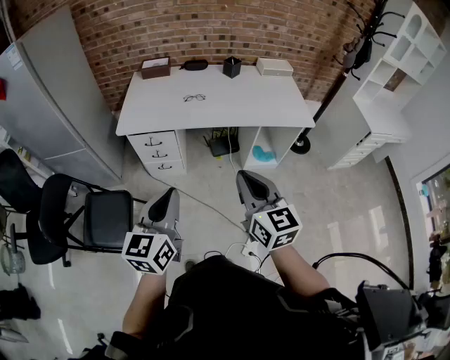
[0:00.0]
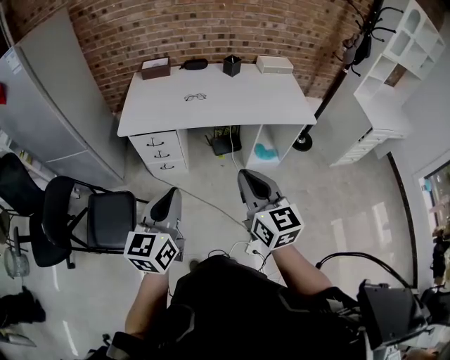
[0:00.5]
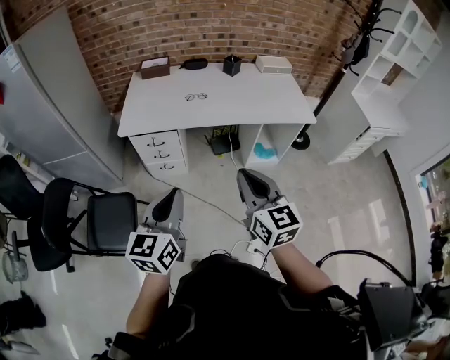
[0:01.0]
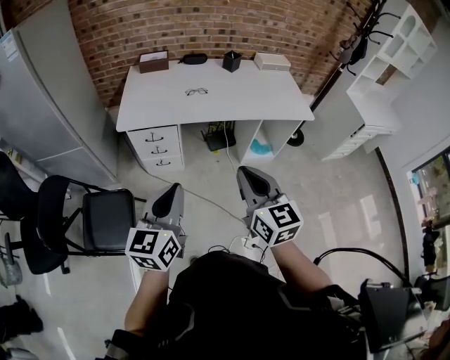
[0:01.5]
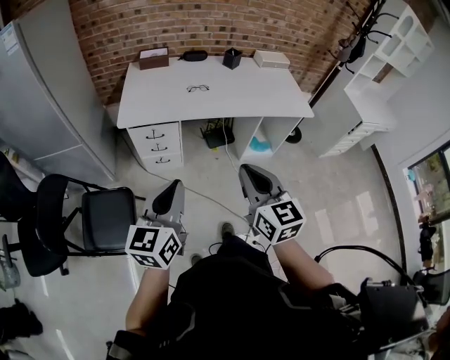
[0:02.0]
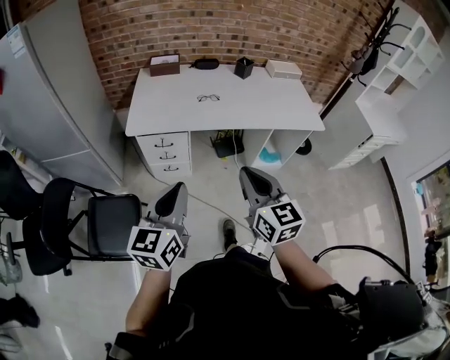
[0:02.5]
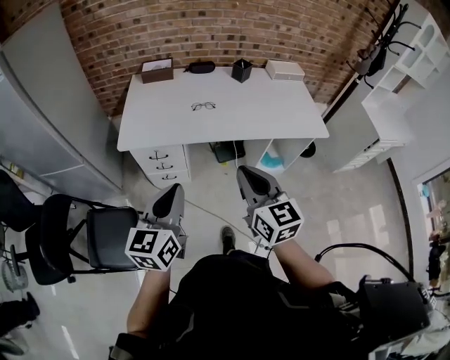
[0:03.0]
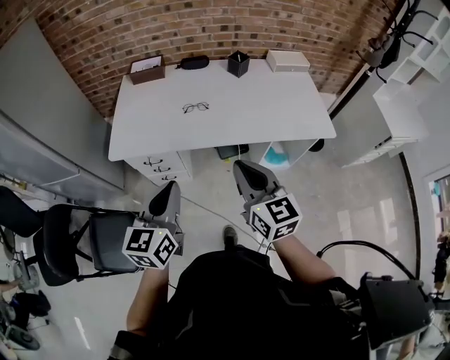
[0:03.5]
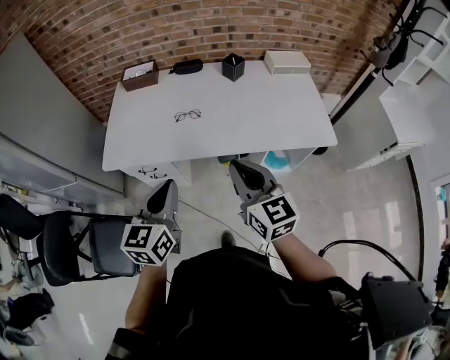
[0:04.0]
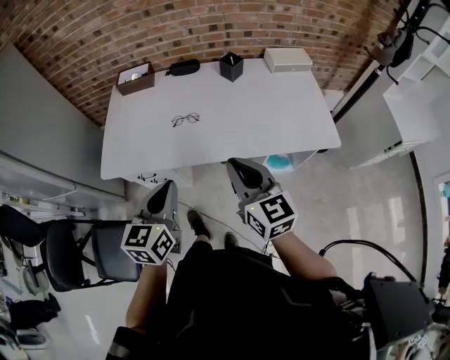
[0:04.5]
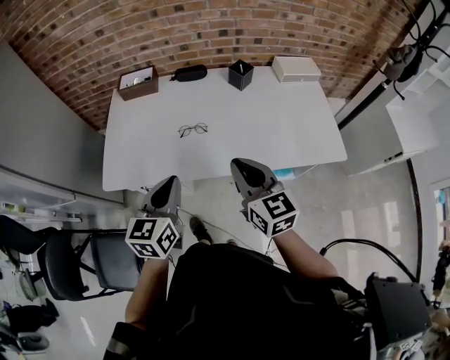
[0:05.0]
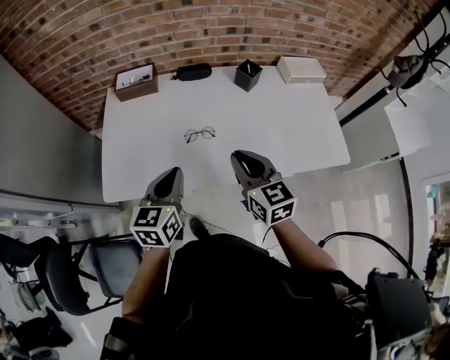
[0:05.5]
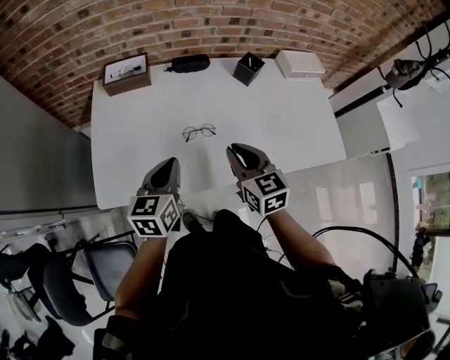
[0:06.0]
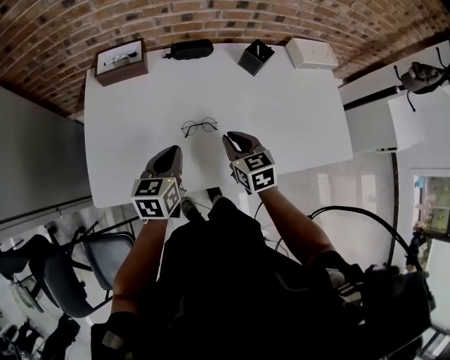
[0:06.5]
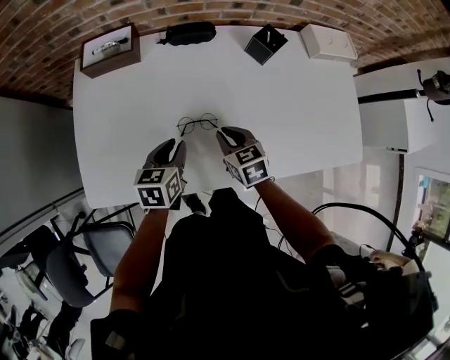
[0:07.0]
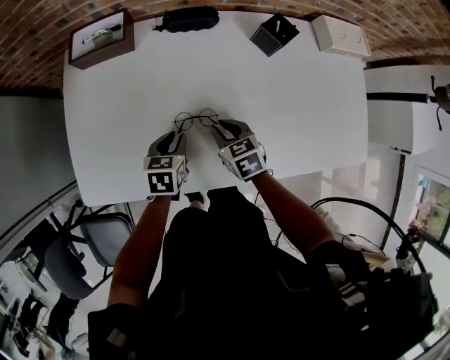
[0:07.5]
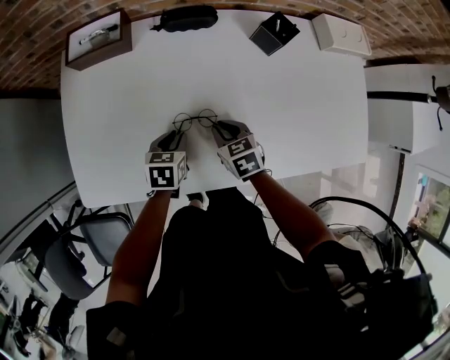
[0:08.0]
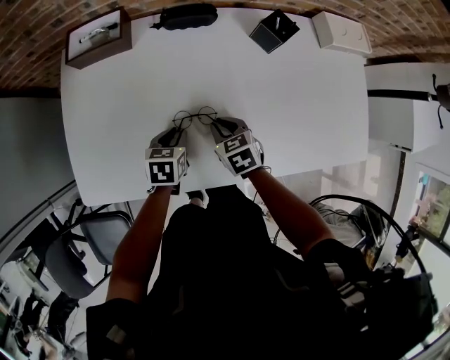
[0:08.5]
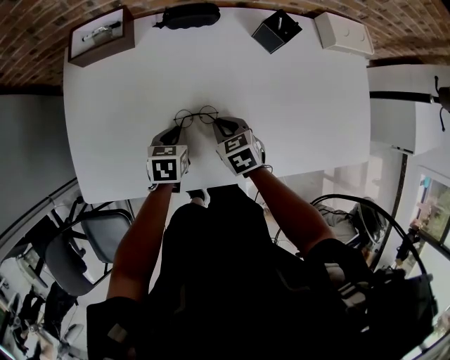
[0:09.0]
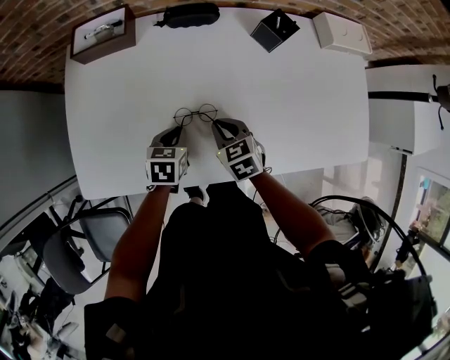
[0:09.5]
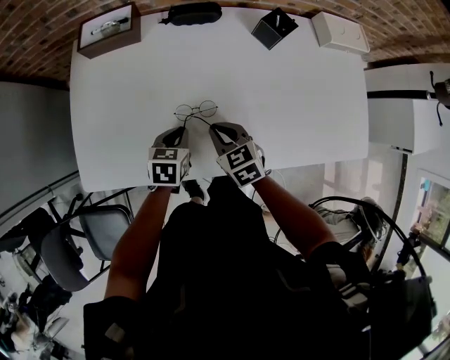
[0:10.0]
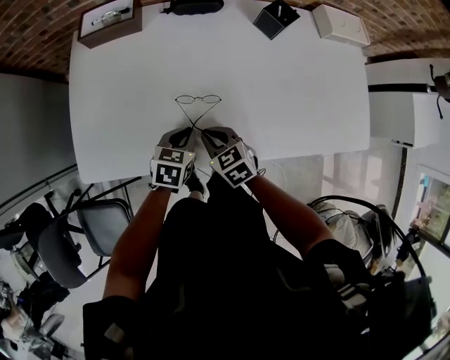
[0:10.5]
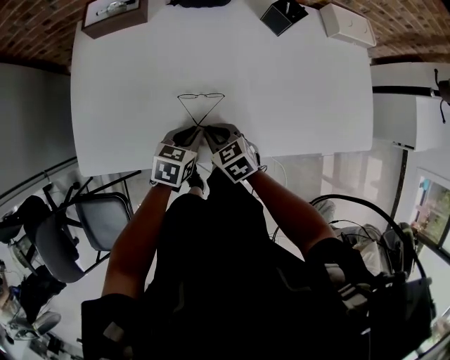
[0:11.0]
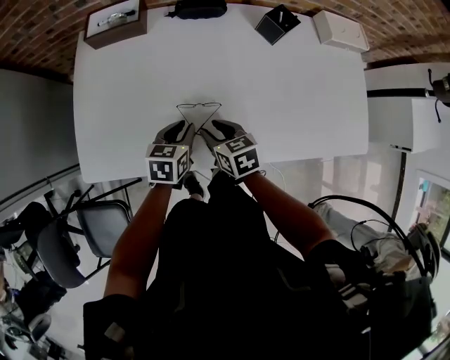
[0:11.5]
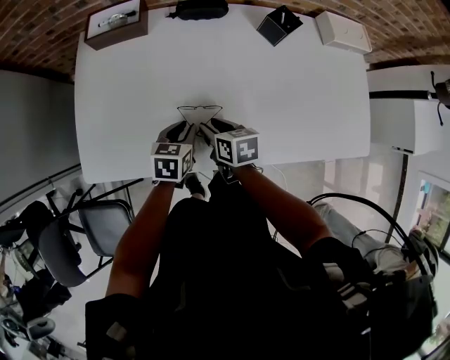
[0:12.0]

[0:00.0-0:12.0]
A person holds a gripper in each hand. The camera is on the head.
0:00.0 to 0:02.0: Both grippers travel together to the left, approximately 10 cm.
0:02.0 to 0:04.0: Both grippers move forward and to the right, roughly 35 cm.
0:04.0 to 0:06.0: The right gripper heads forward, to the left and downward, covering some 30 cm. Meanwhile the left gripper moves forward, approximately 30 cm.
0:06.0 to 0:08.0: The grippers both shift downward and forward by some 25 cm. The left gripper tilts its fingers about 30 degrees downward, and opens up. Meanwhile the right gripper turns by roughly 30 degrees.
0:08.0 to 0:10.0: The right gripper moves some 5 cm.
0:10.0 to 0:12.0: The right gripper turns by roughly 30 degrees, and opens.

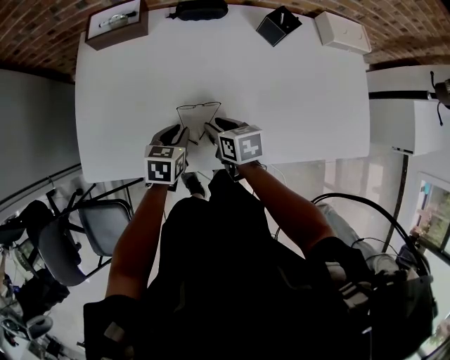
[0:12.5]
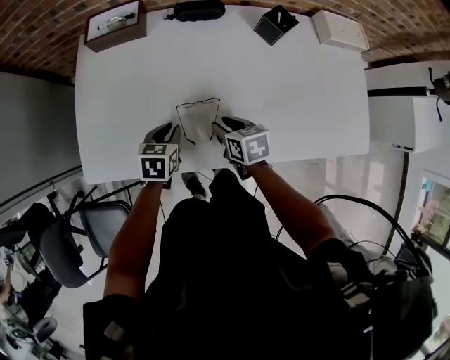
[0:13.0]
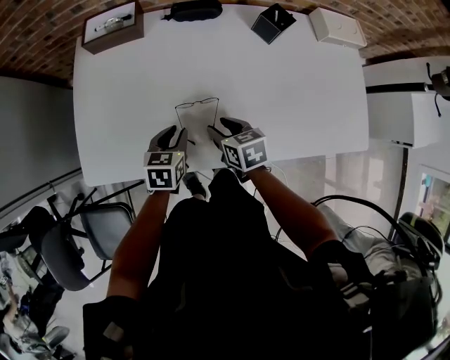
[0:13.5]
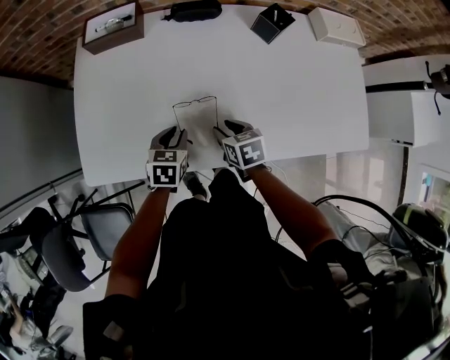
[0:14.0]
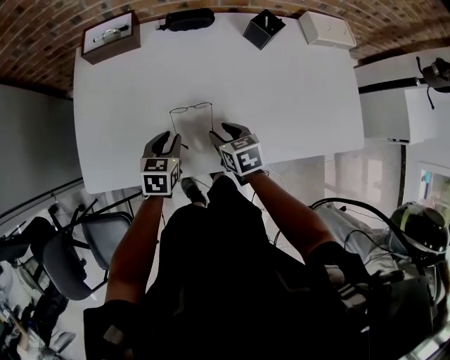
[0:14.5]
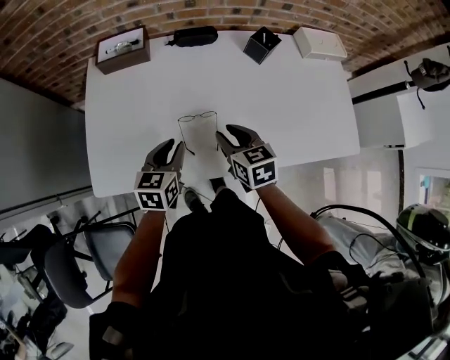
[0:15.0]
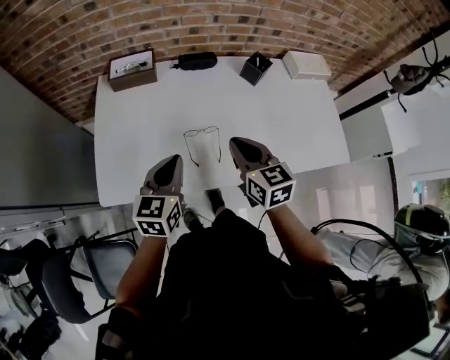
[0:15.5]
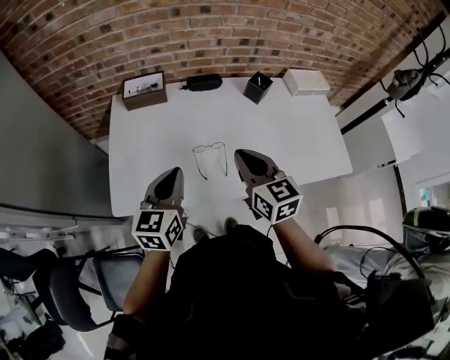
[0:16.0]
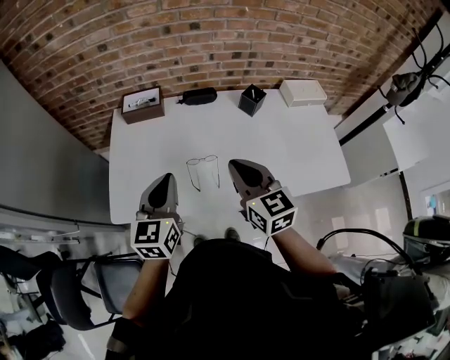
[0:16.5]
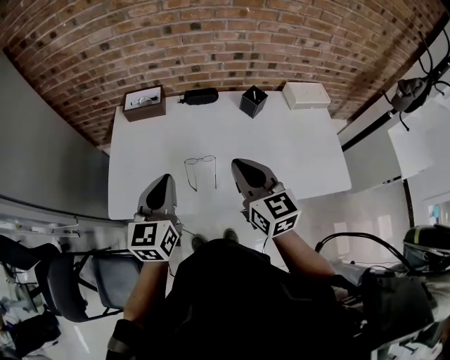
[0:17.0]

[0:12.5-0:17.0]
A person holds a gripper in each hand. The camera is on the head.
0:12.5 to 0:14.5: There are only small adjustments of the grippers.
0:14.5 to 0:17.0: The two grippers go about 30 cm upward. The right gripper tilts its fingers about 40 degrees upward, and closes up. The left gripper points its fingers roughly 30 degrees further upward, and closes its fingers.

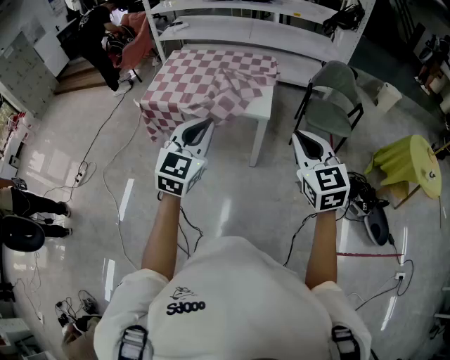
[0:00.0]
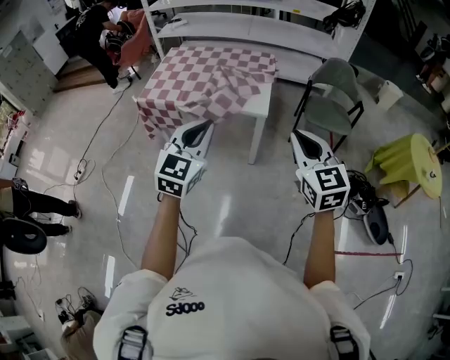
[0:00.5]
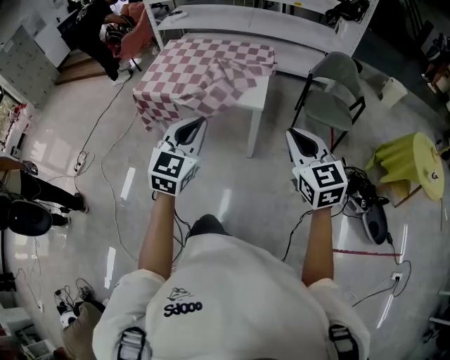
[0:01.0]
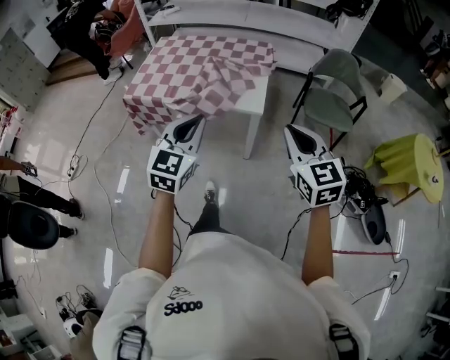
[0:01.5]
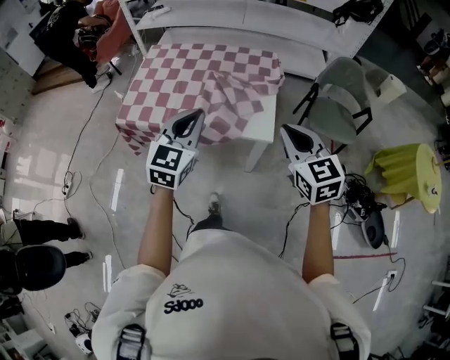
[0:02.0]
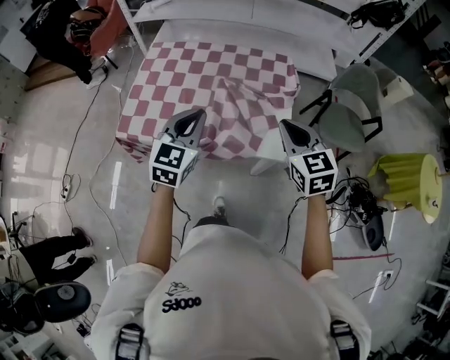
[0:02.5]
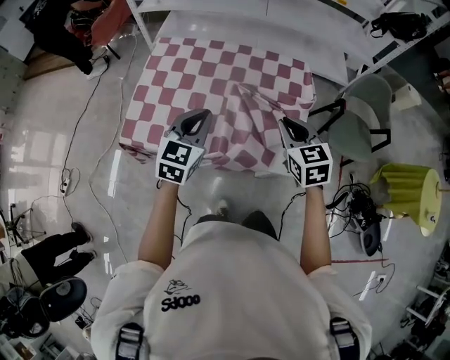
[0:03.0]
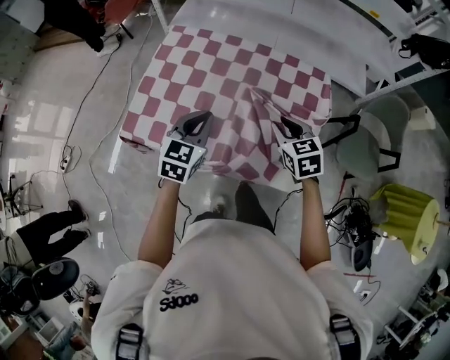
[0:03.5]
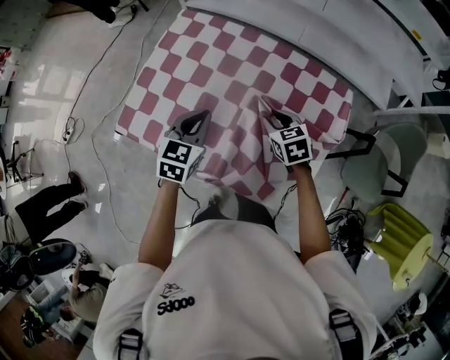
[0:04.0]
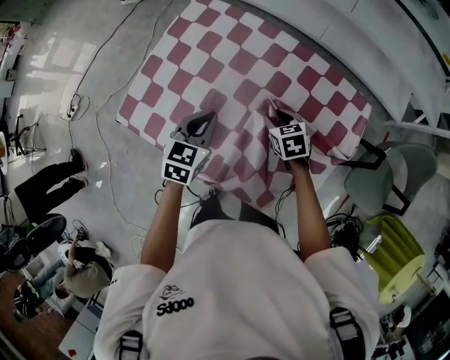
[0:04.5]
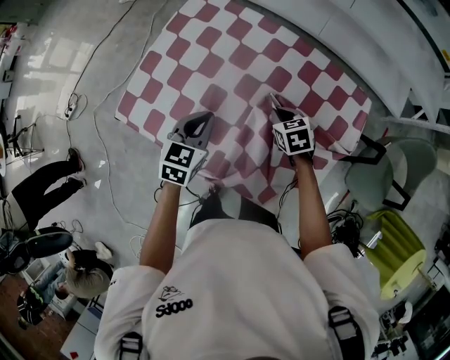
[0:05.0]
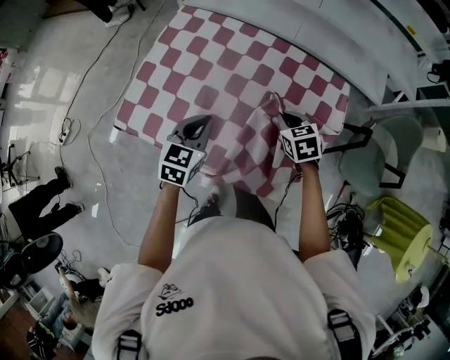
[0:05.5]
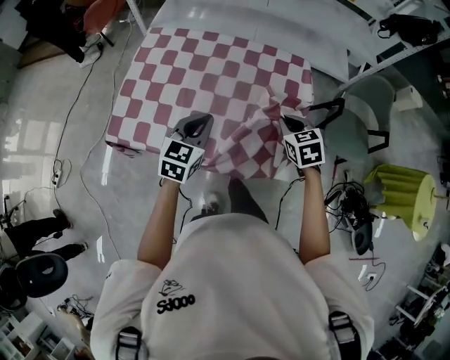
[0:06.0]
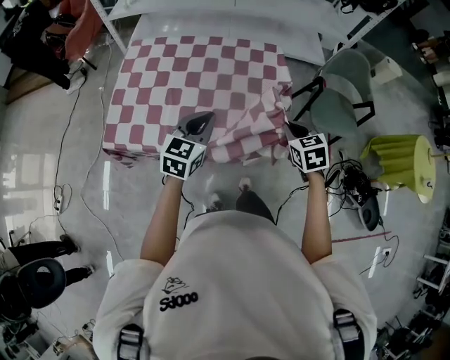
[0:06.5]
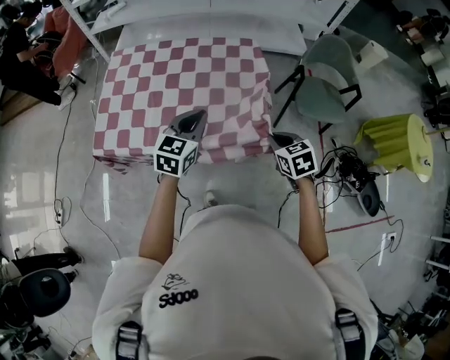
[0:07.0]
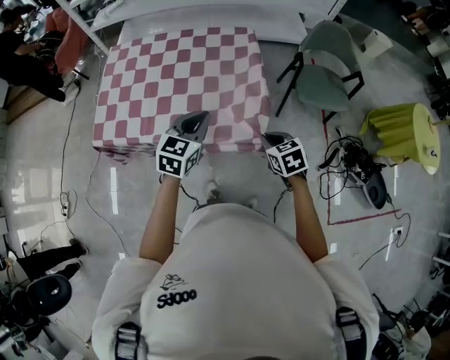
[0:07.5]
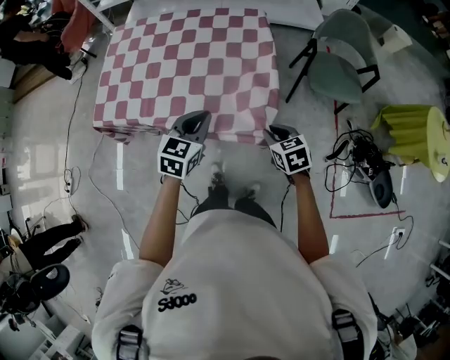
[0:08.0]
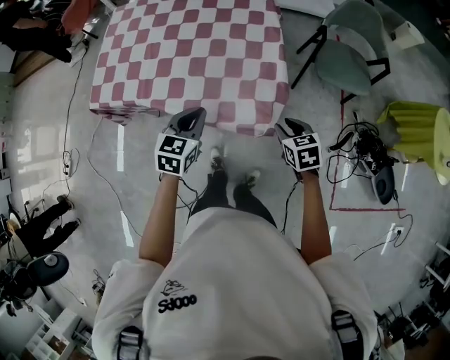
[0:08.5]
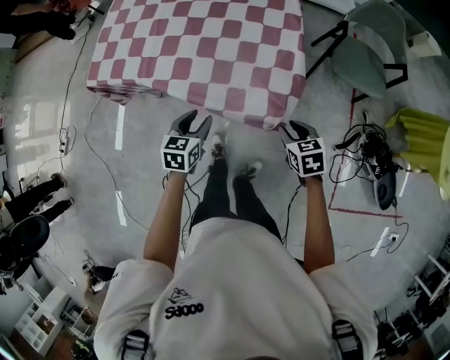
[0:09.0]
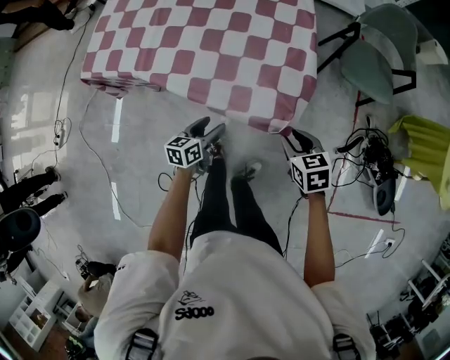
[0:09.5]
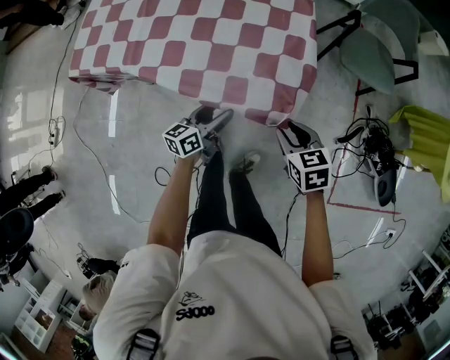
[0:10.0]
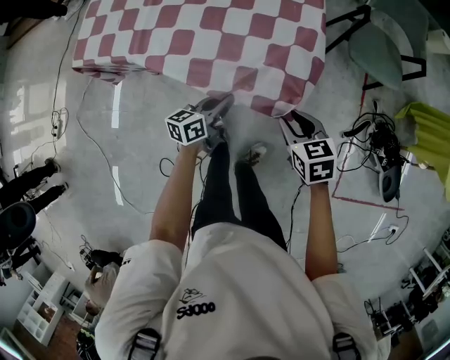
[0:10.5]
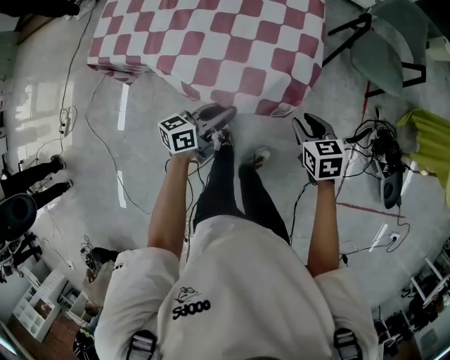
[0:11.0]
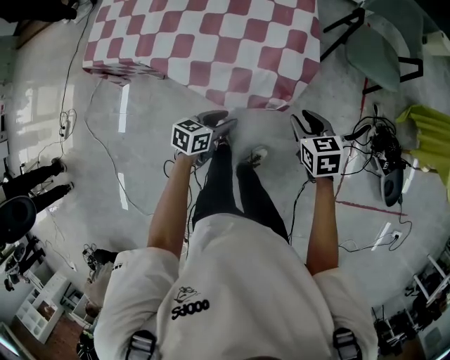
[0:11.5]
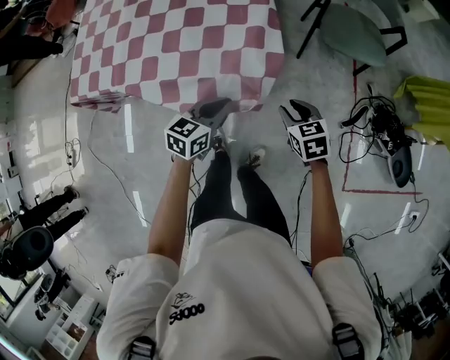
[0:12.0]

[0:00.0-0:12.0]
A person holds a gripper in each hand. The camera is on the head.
0:00.0 to 0:02.0: The grippers both shift forward by approximately 30 cm.
0:02.0 to 0:04.0: Both grippers travel together forward and downward, some 50 cm. The left gripper rotates about 30 degrees; the right gripper tips its fingers downward by roughly 30 degrees, and opens.
0:04.0 to 0:06.0: The right gripper changes place by approximately 20 cm, and closes, while the left gripper ends up roughly 15 cm from where it was.
0:06.0 to 0:08.0: The left gripper heads to the right and backward, covering approximately 20 cm. Meanwhile the right gripper goes some 25 cm backward and to the right.
0:08.0 to 0:10.0: The left gripper heads downward, covering some 25 cm, rolls counterclockwise, seen from behind, by approximately 40 degrees, and opens up; the right gripper travels downward and backward by some 10 cm.
0:10.0 to 0:12.0: The left gripper moves to the right and upward, roughly 15 cm, swivels roughly 30 degrees, and closes, while the right gripper heads to the right, covering roughly 10 cm.
